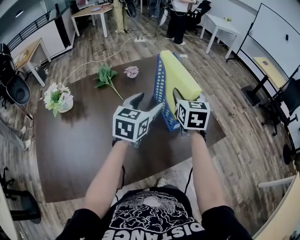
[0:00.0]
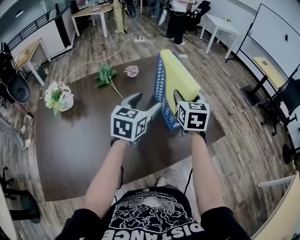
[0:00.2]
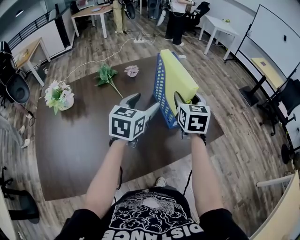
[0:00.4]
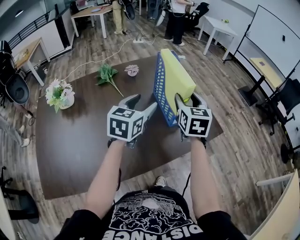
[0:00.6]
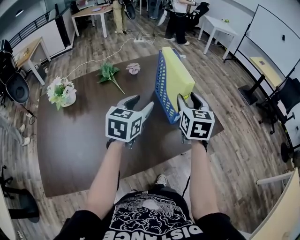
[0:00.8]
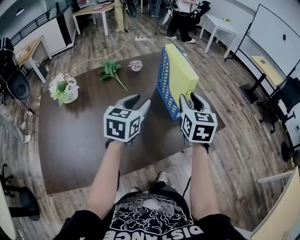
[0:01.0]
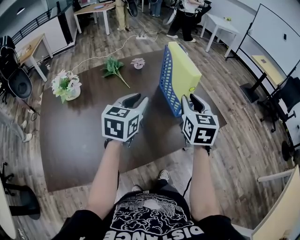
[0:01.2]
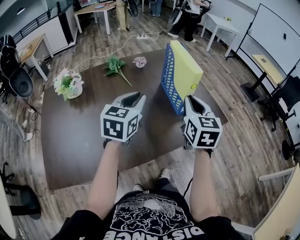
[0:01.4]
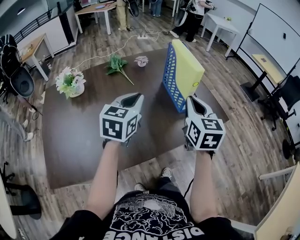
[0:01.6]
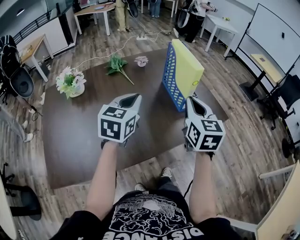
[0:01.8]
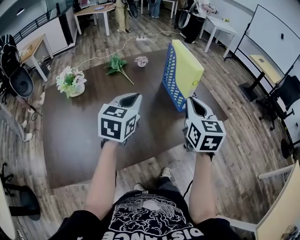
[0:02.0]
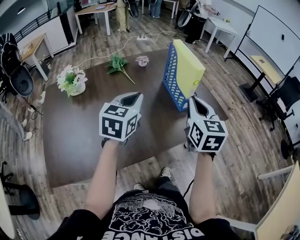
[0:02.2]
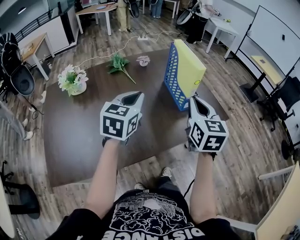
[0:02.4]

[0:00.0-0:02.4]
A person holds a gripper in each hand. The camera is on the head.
0.0 to 1.2 s: The right gripper heads backward, covering approximately 15 cm; the left gripper heads backward and to the left, covering about 10 cm, and closes.
1.2 to 2.4 s: The right gripper is displaced backward by roughly 5 cm. Meanwhile the left gripper moves about 5 cm.

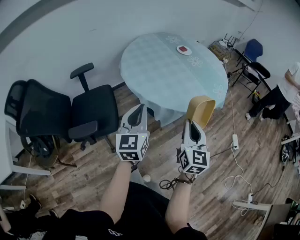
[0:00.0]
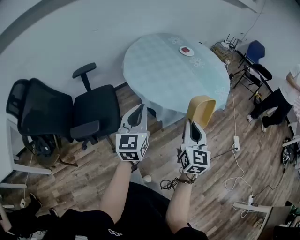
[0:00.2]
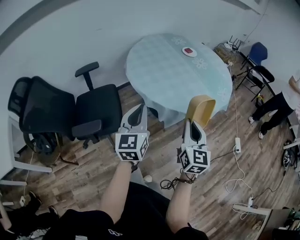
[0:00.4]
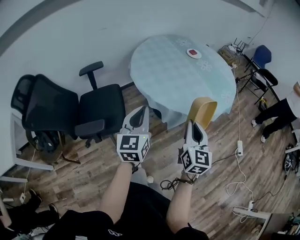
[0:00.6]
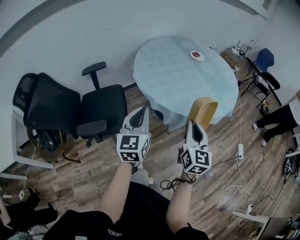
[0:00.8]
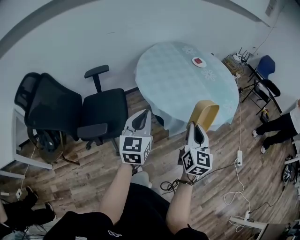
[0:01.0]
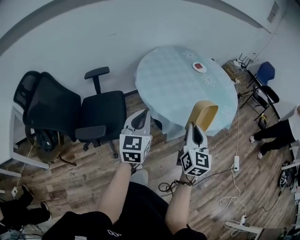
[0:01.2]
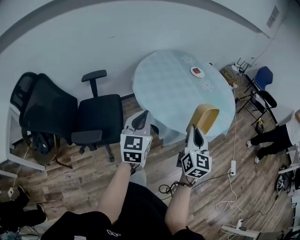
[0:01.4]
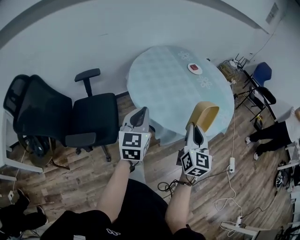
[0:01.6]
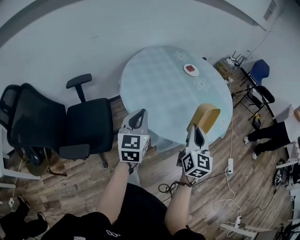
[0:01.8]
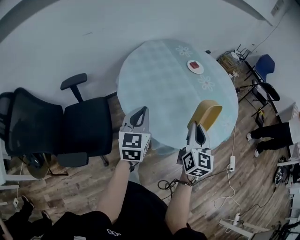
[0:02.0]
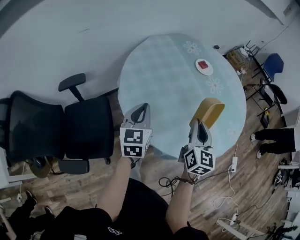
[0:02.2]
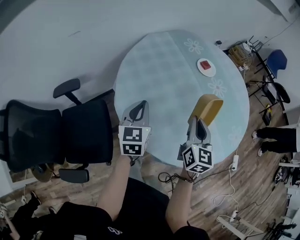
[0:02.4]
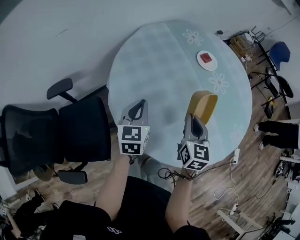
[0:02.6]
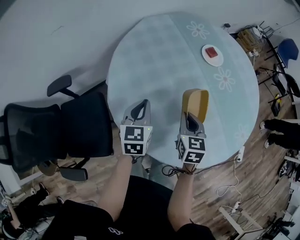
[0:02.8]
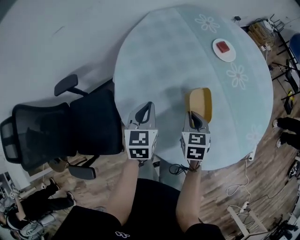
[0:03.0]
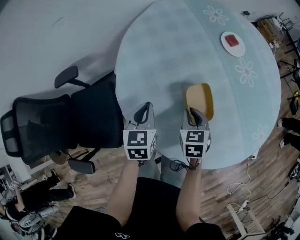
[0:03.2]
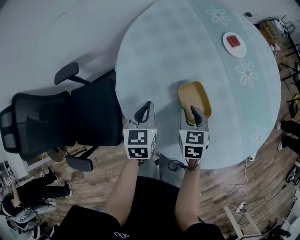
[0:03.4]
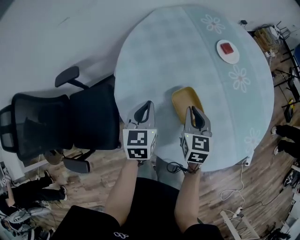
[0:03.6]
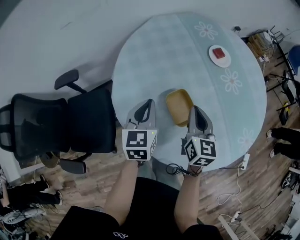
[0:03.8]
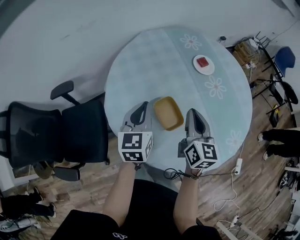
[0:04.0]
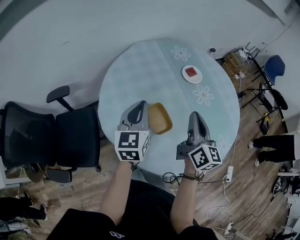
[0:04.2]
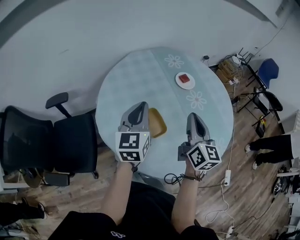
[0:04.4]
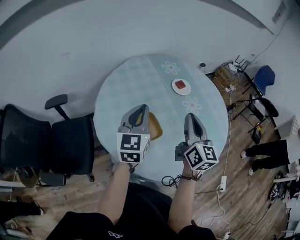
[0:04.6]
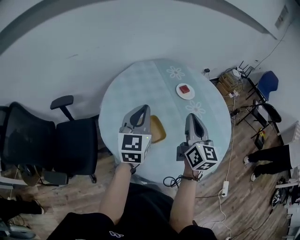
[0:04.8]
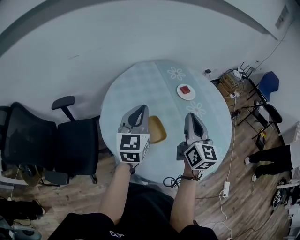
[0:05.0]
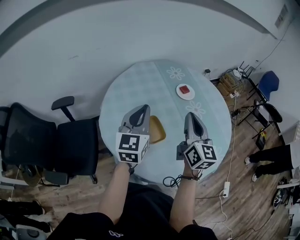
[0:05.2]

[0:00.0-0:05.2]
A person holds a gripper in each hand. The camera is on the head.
0.0 to 1.8 s: Both grippers move forward, approximately 15 cm.
1.8 to 3.4 s: Both grippers travel together forward and downward, approximately 35 cm. The right gripper tips its fingers downward by about 40 degrees, and opens up, while the left gripper rotates some 30 degrees.
3.4 to 5.2 s: The grippers both shift upward and to the right by about 30 cm. The right gripper tips its fingers upward by about 50 degrees, and closes its fingers. The left gripper points its fingers some 30 degrees further upward.

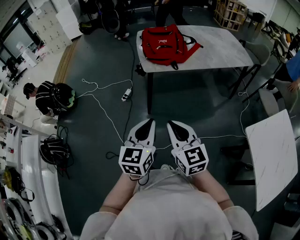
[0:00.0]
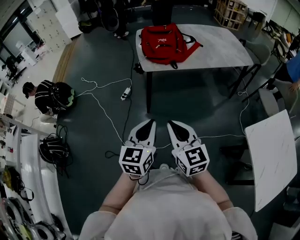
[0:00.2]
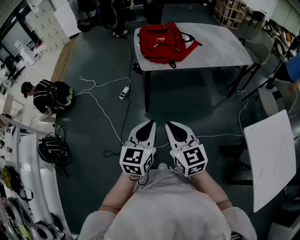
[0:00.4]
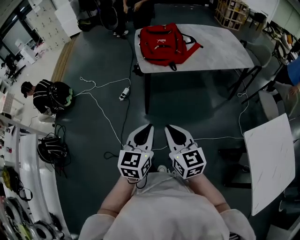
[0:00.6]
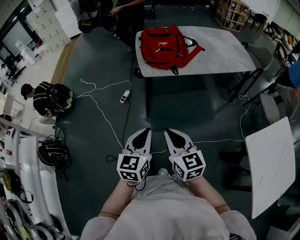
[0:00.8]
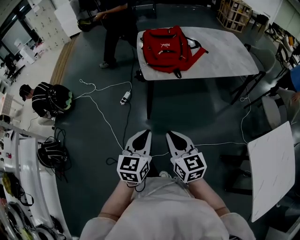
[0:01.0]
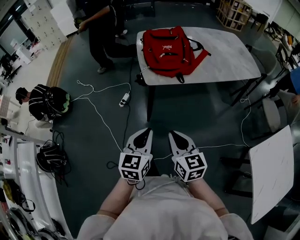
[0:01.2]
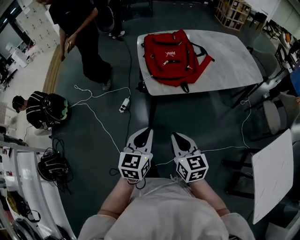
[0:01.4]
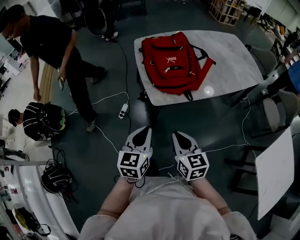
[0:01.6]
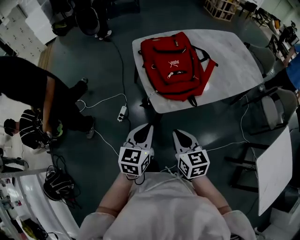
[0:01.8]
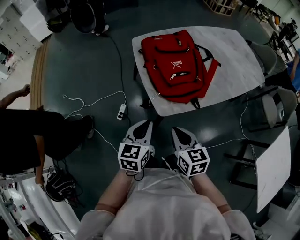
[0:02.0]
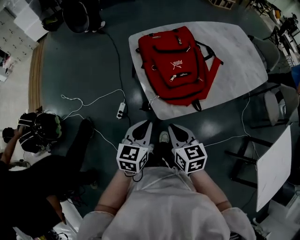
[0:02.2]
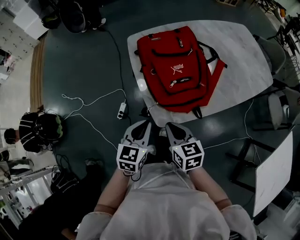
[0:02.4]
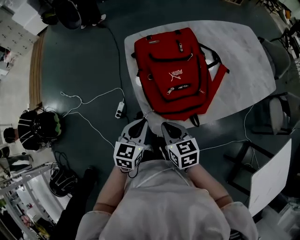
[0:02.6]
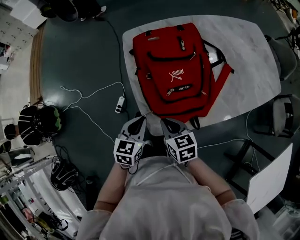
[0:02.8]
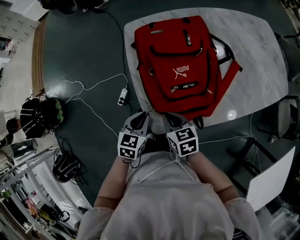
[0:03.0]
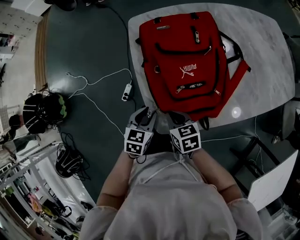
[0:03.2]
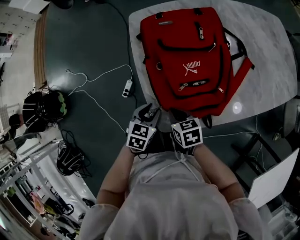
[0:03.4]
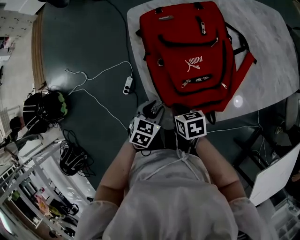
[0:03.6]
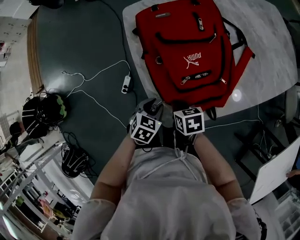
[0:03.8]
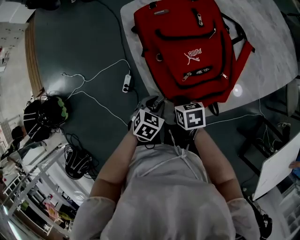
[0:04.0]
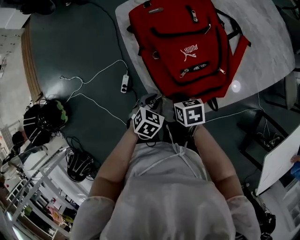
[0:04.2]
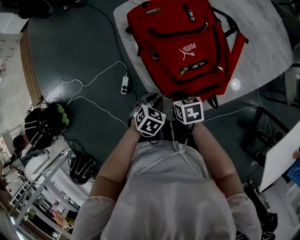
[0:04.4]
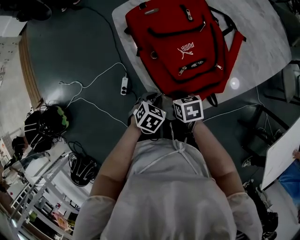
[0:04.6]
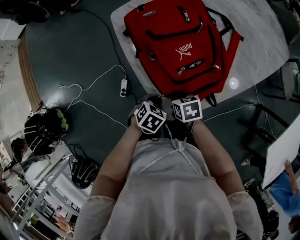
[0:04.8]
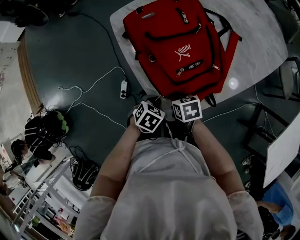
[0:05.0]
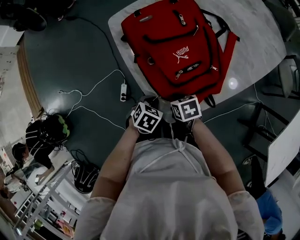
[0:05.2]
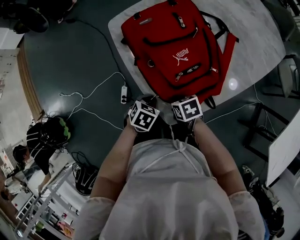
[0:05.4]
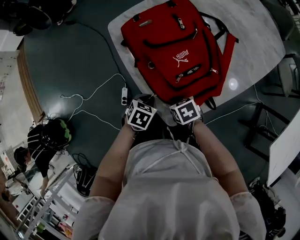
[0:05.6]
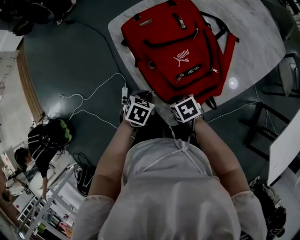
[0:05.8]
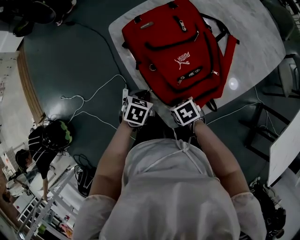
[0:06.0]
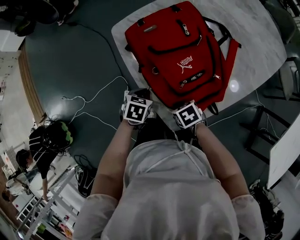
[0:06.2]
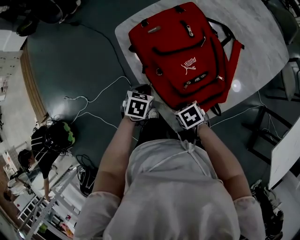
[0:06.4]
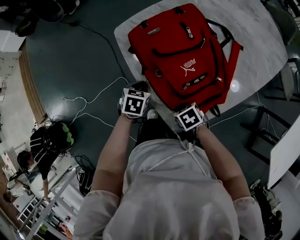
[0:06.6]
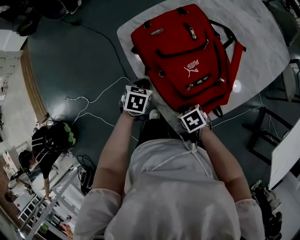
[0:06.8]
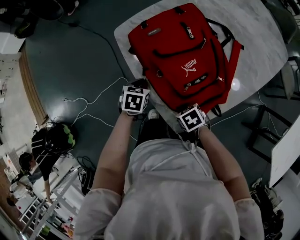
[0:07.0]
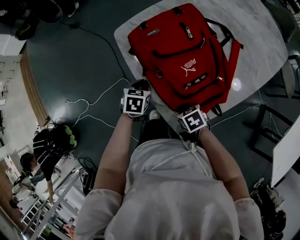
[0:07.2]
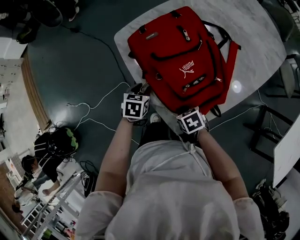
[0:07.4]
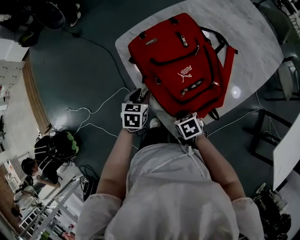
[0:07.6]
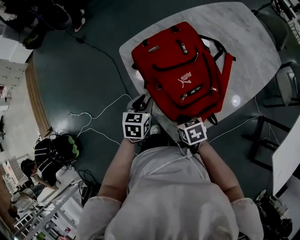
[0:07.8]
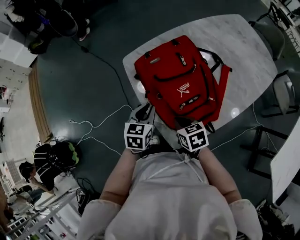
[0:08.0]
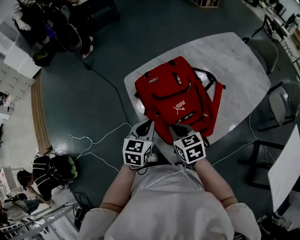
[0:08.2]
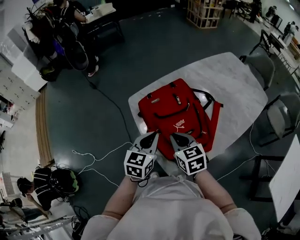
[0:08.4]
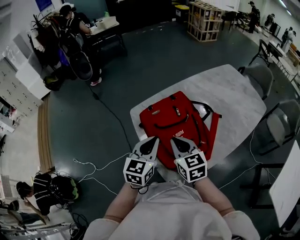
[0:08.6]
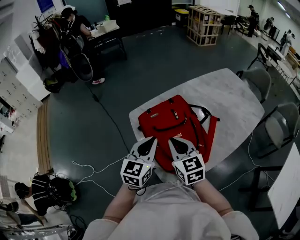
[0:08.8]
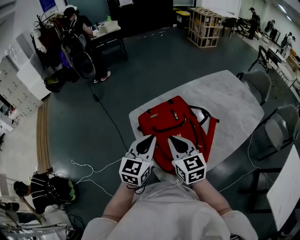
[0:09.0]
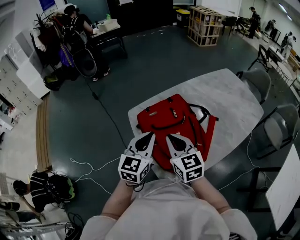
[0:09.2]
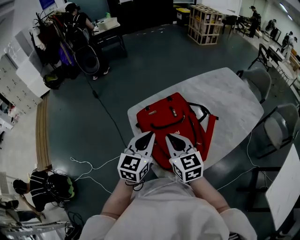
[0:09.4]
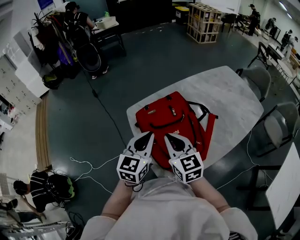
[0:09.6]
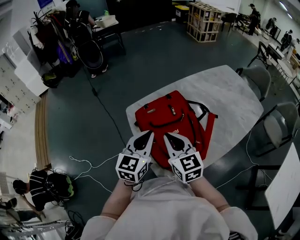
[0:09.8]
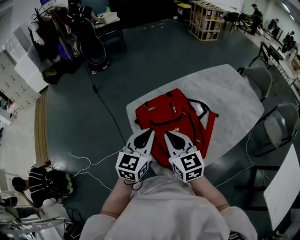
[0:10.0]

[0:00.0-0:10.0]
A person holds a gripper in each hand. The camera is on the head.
0.0 to 1.4 s: Both grippers travel together forward, about 20 cm.
1.4 to 2.8 s: Both grippers move forward, approximately 35 cm. The right gripper rotates some 20 degrees.
2.8 to 4.2 s: The two grippers go approximately 10 cm downward. The right gripper rotates some 20 degrees. The left gripper rotates roughly 30 degrees.
4.2 to 5.8 s: The left gripper is displaced forward by some 5 cm.
5.8 to 7.2 s: The left gripper heads forward, covering roughly 10 cm.
7.2 to 8.6 s: Both grippers travel together upward, roughly 30 cm. The left gripper points its fingers some 40 degrees further upward, and opens, then closes once more. The right gripper points its fingers some 40 degrees further upward.
8.6 to 10.0 s: The grippers make only small movements.

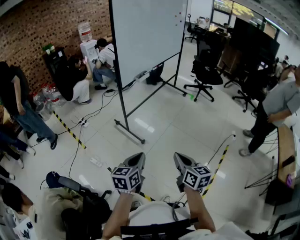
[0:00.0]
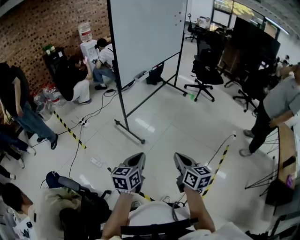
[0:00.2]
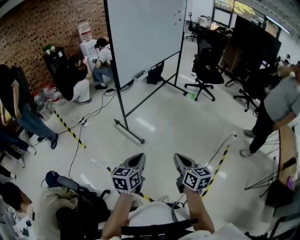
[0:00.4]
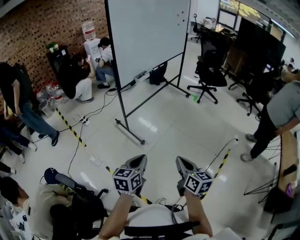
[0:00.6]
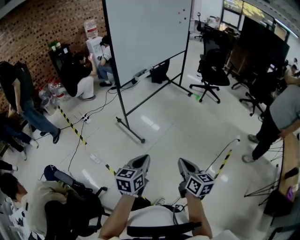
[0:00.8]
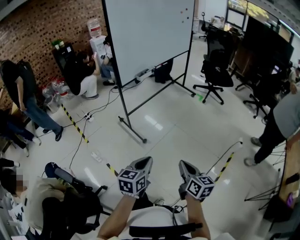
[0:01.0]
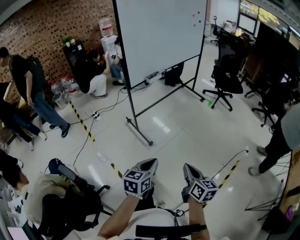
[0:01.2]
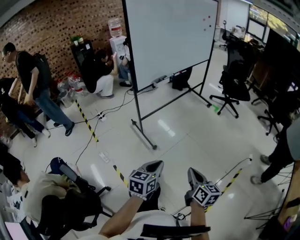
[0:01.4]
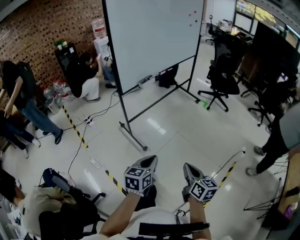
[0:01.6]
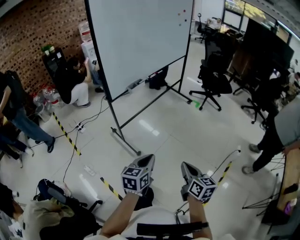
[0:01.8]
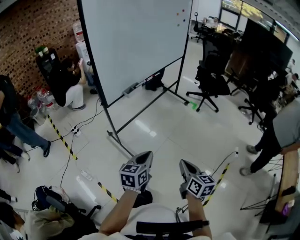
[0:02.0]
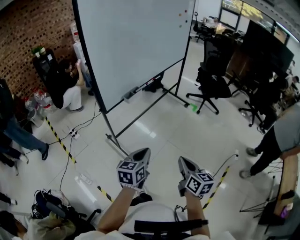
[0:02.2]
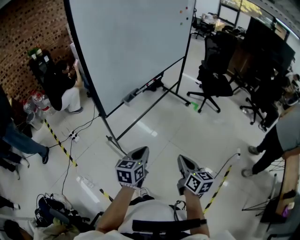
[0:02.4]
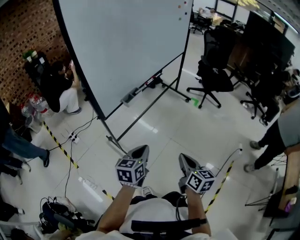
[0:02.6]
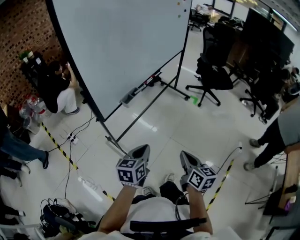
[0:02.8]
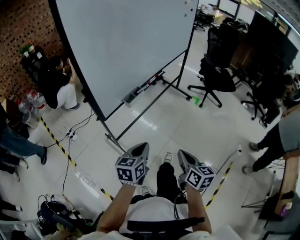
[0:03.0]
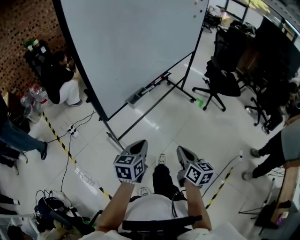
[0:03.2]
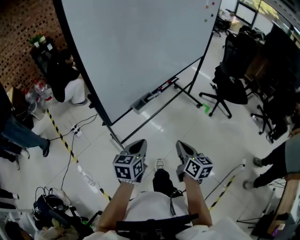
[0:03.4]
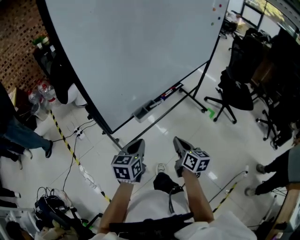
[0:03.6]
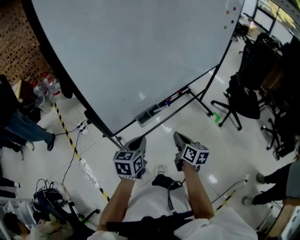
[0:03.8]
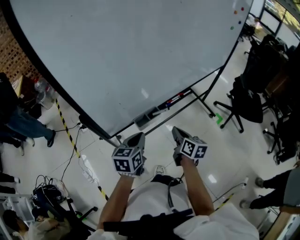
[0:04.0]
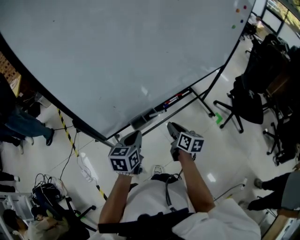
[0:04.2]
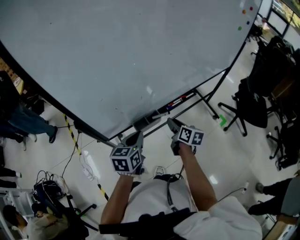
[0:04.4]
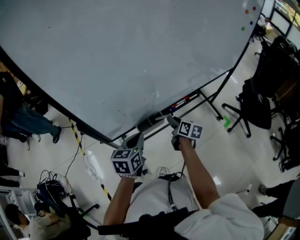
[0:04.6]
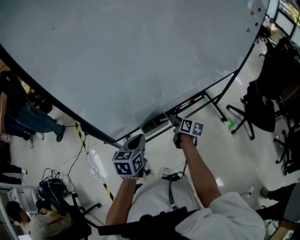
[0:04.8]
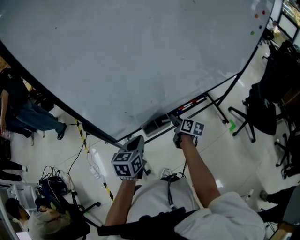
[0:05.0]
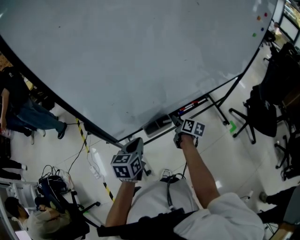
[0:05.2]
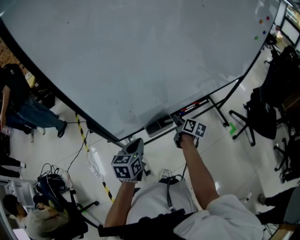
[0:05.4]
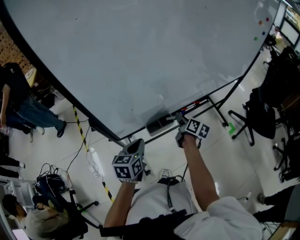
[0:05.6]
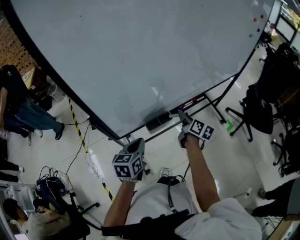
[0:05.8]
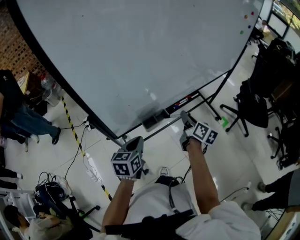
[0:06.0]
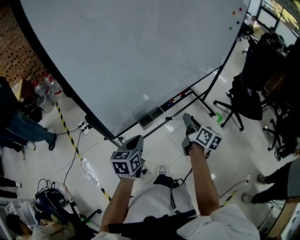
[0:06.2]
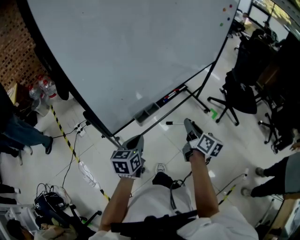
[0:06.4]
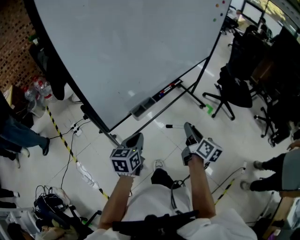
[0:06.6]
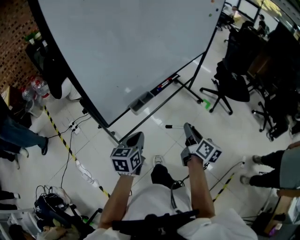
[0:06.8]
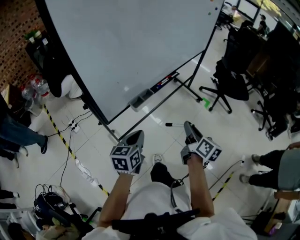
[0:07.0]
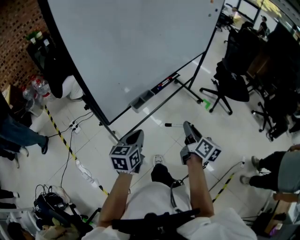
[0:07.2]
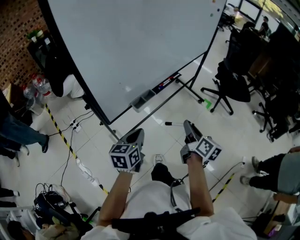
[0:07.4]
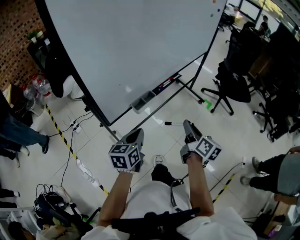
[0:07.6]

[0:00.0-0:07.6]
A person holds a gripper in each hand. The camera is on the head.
0.0 to 1.6 s: The left gripper is displaced forward and to the right by roughly 20 cm; the right gripper shifts roughly 20 cm to the right and forward.
1.6 to 3.0 s: The two grippers go approximately 35 cm forward.
3.0 to 4.6 s: The right gripper changes place by some 50 cm, rotates approximately 30 degrees, and opens, while the left gripper ends up some 30 cm from where it was, and rotates some 30 degrees.
4.6 to 6.0 s: The left gripper changes place by about 5 cm; the right gripper is displaced upward by approximately 10 cm, and closes up.
6.0 to 7.6 s: The left gripper moves backward, approximately 10 cm. The right gripper is displaced backward by about 20 cm.
